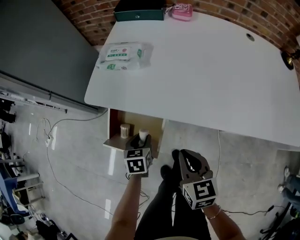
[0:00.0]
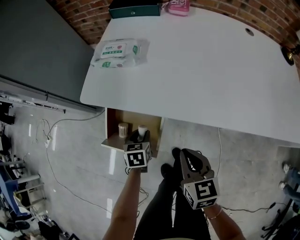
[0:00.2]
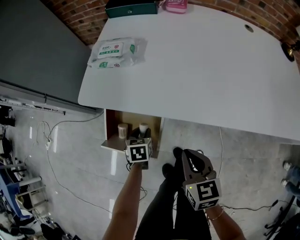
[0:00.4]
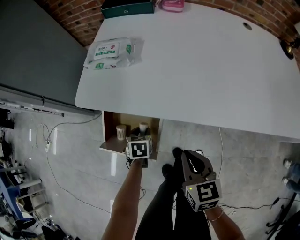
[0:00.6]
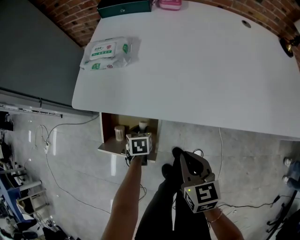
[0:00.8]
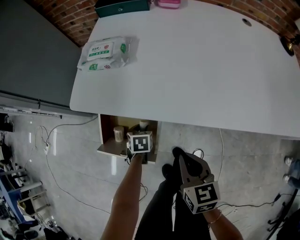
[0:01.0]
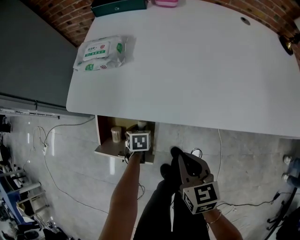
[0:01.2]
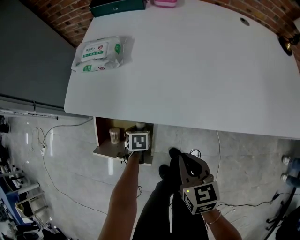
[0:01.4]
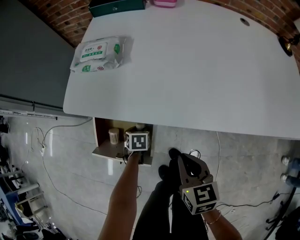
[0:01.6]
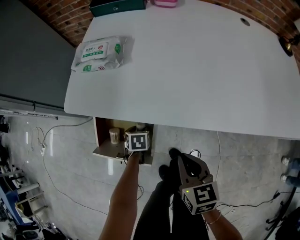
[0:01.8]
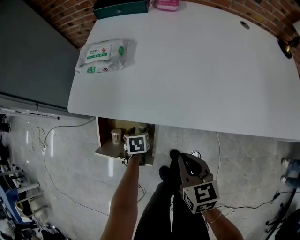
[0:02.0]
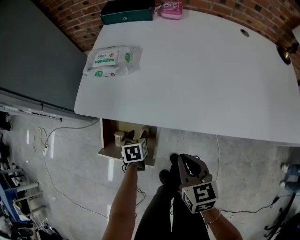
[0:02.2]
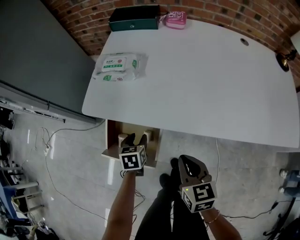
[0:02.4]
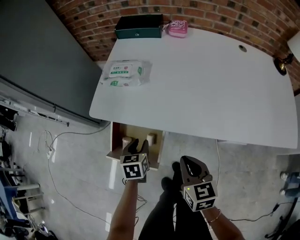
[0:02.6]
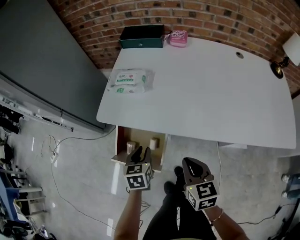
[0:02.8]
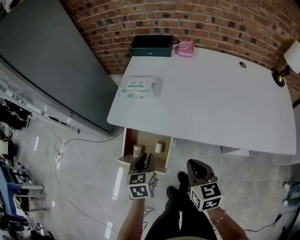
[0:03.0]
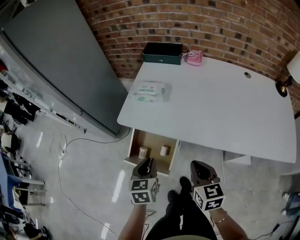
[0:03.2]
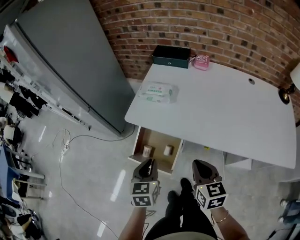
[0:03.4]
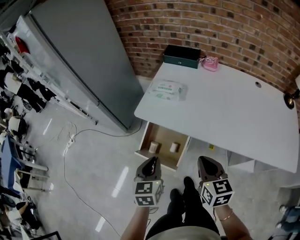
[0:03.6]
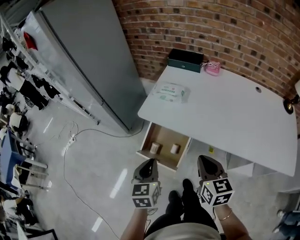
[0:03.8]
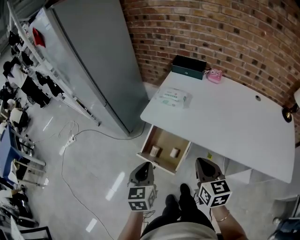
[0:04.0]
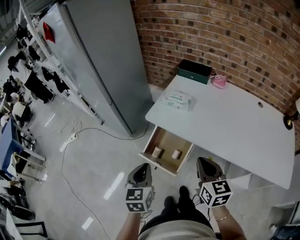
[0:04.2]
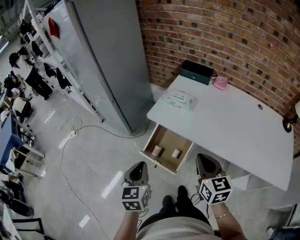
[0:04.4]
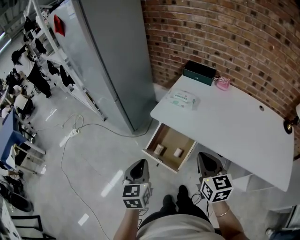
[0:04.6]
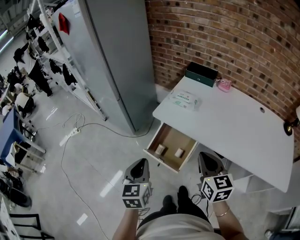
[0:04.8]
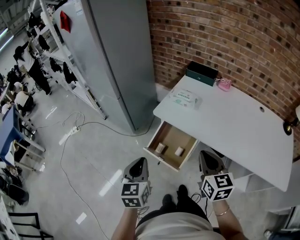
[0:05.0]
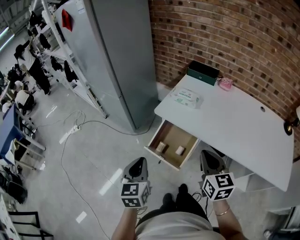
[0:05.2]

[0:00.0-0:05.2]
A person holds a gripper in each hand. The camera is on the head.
0:00.0 to 0:01.8: The right gripper moves downward, some 5 cm. Meanwhile the left gripper travels downward by roughly 15 cm.
0:01.8 to 0:03.4: The left gripper heads upward, covering roughly 40 cm, points its fingers some 40 degrees further upward, and closes. The right gripper shifts roughly 20 cm upward.
0:03.4 to 0:05.2: The left gripper goes some 20 cm to the left, upward and backward; the right gripper shifts approximately 15 cm upward and to the left.

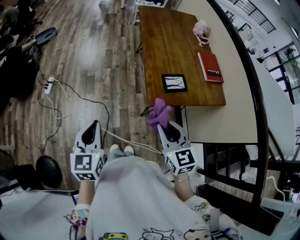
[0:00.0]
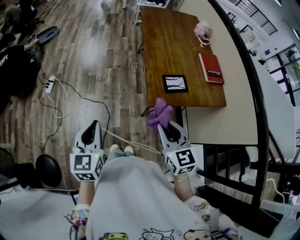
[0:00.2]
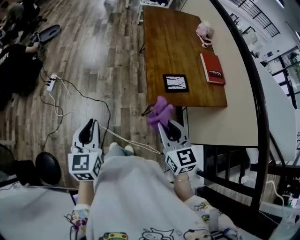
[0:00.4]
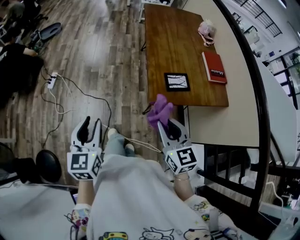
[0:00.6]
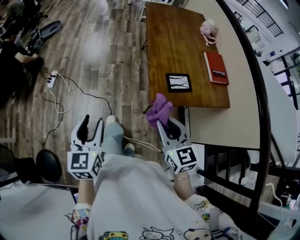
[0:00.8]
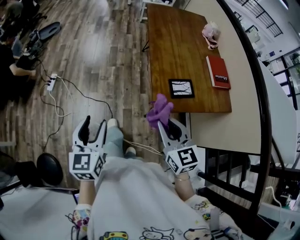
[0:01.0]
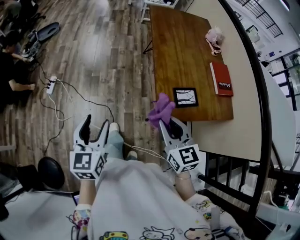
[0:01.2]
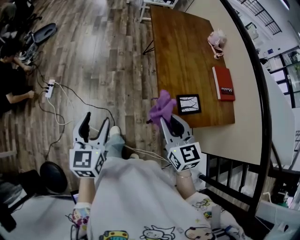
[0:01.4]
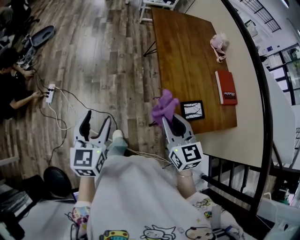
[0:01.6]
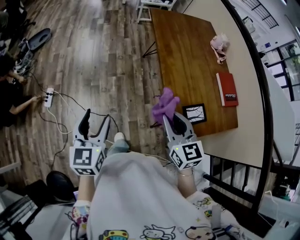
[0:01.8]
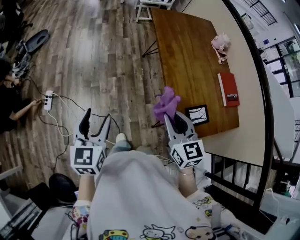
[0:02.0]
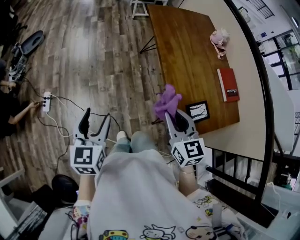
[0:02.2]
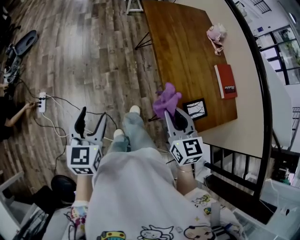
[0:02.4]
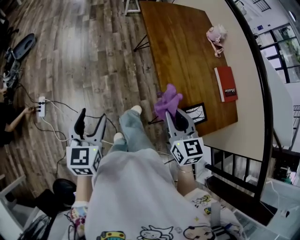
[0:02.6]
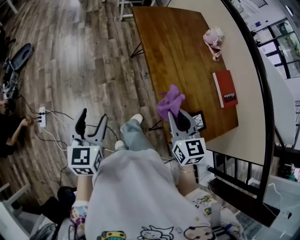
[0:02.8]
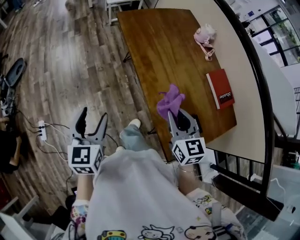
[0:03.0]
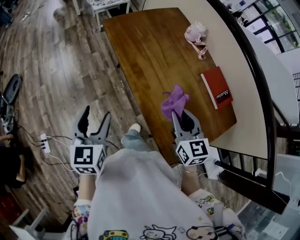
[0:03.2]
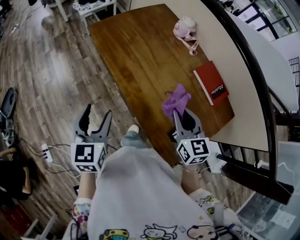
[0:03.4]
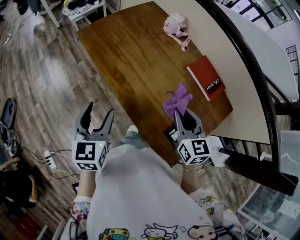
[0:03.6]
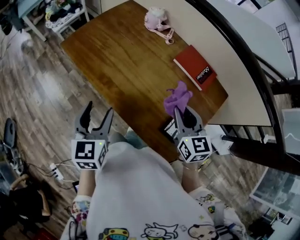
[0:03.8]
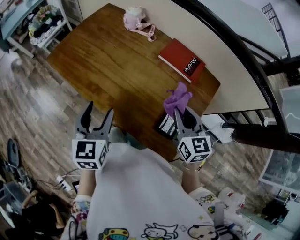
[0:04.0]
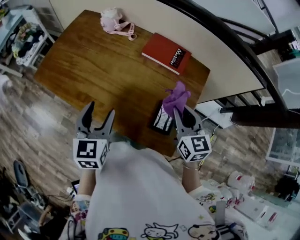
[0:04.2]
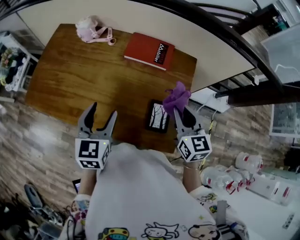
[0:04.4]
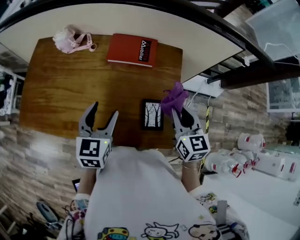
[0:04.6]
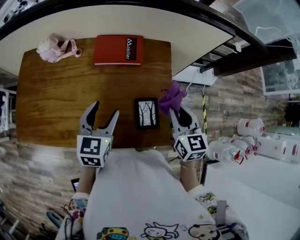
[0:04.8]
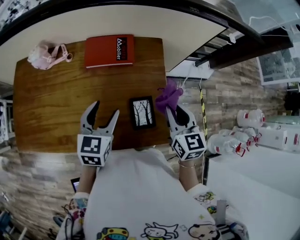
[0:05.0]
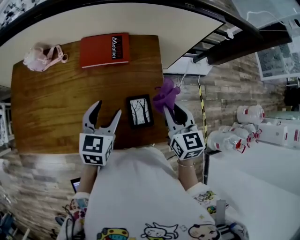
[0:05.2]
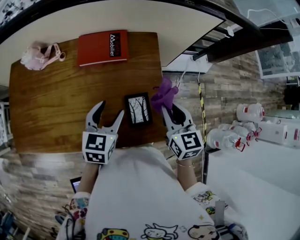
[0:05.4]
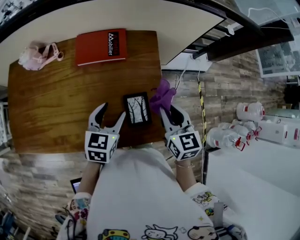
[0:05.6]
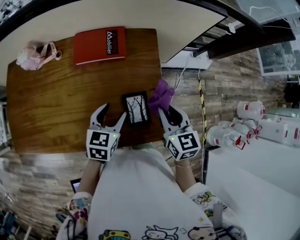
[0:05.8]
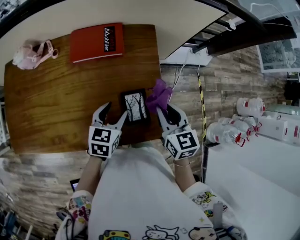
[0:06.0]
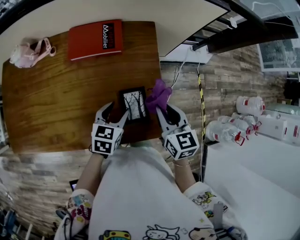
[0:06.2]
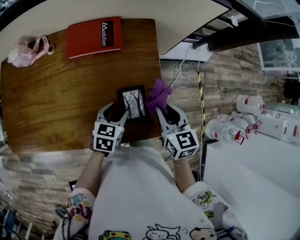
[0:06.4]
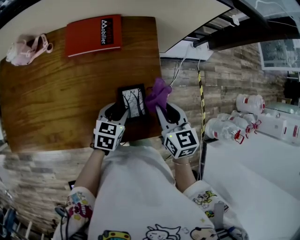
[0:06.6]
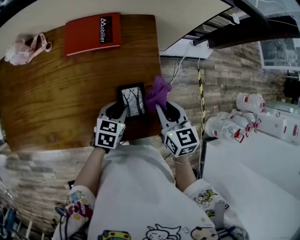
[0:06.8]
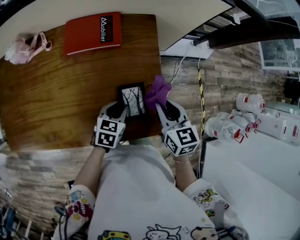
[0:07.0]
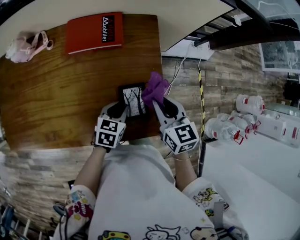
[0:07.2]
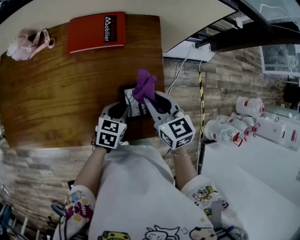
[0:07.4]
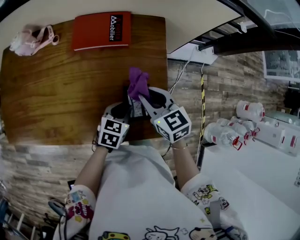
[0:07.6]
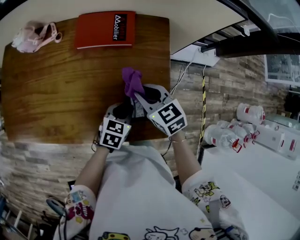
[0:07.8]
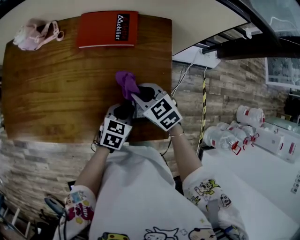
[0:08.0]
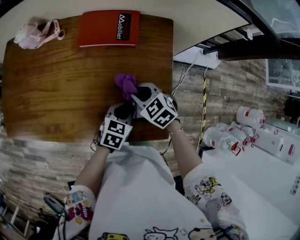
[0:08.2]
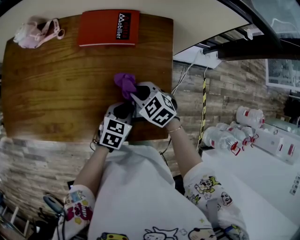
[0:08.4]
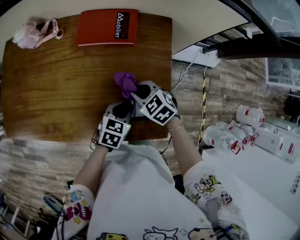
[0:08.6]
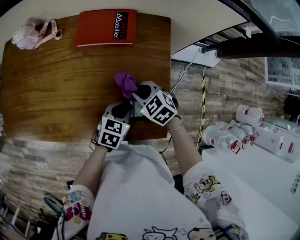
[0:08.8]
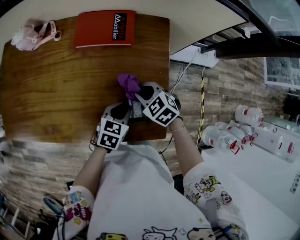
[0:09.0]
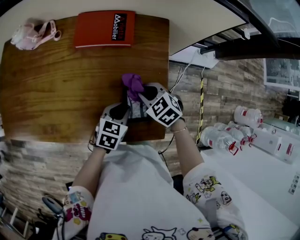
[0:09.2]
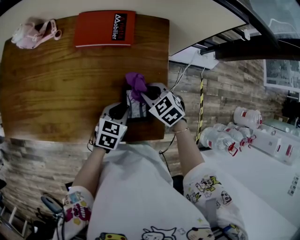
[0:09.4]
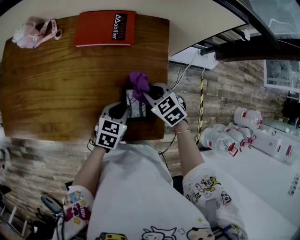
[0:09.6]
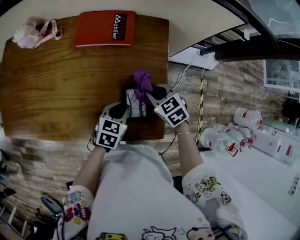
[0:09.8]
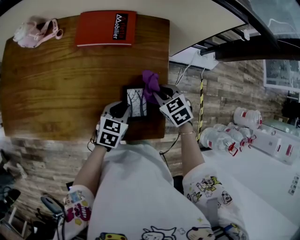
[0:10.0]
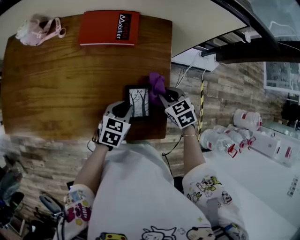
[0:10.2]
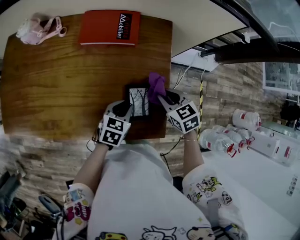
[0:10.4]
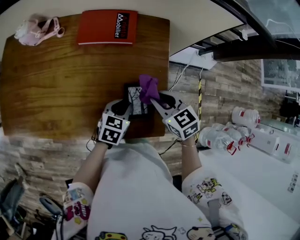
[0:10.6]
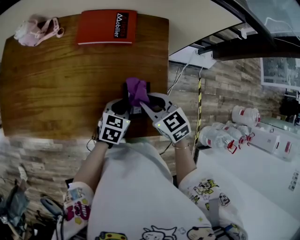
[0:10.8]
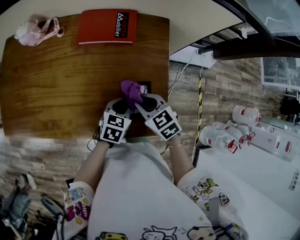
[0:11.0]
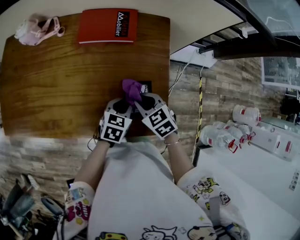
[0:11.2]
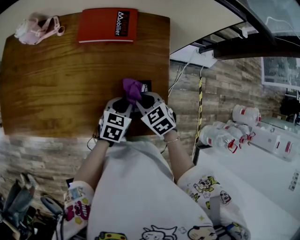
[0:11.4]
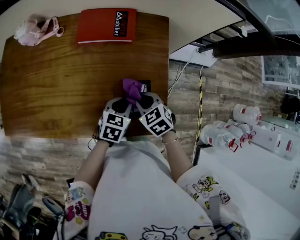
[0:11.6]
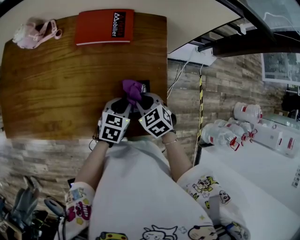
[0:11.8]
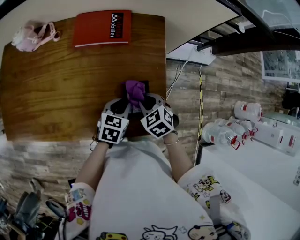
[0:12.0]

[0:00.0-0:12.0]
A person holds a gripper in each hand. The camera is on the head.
0:00.0 to 0:01.6: The grippers both shift forward by about 25 cm. The left gripper opens up.
0:01.6 to 0:03.0: The right gripper goes roughly 20 cm forward and to the right, while the left gripper is displaced forward by approximately 25 cm.
0:03.0 to 0:04.4: The right gripper moves approximately 25 cm, and changes its angle by about 50 degrees, while the left gripper ends up some 35 cm from where it was, and changes its angle by some 60 degrees.
0:04.4 to 0:06.0: The left gripper changes place by roughly 20 cm, and changes its angle by roughly 40 degrees. The right gripper ends up some 10 cm from where it was, and changes its angle by about 20 degrees.
0:06.0 to 0:07.6: The left gripper moves downward, some 5 cm, and closes up, while the right gripper heads to the left, covering approximately 10 cm, and changes its angle by some 20 degrees.
0:07.6 to 0:09.0: The right gripper is displaced downward by some 10 cm, and swivels about 30 degrees.
0:09.0 to 0:10.4: The right gripper shifts about 10 cm to the right, and turns by roughly 20 degrees.
0:10.4 to 0:12.0: The right gripper goes roughly 5 cm to the left.

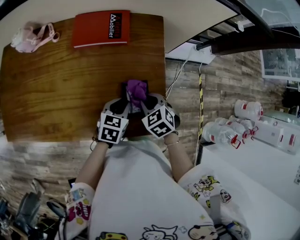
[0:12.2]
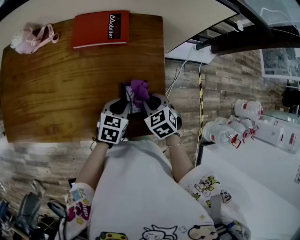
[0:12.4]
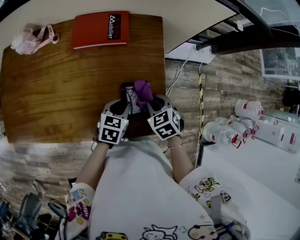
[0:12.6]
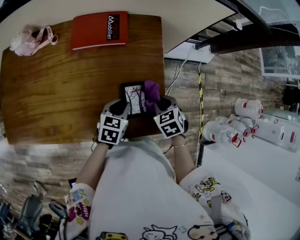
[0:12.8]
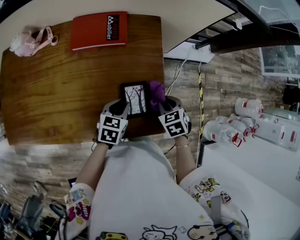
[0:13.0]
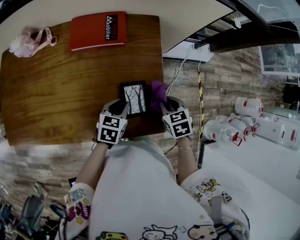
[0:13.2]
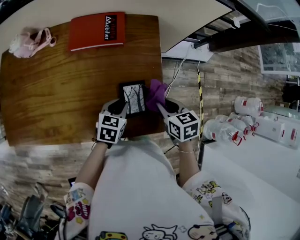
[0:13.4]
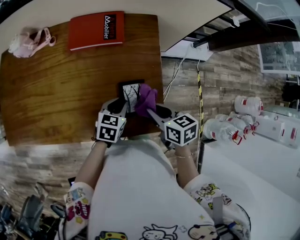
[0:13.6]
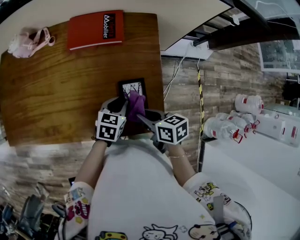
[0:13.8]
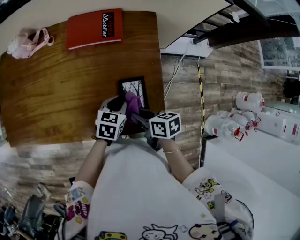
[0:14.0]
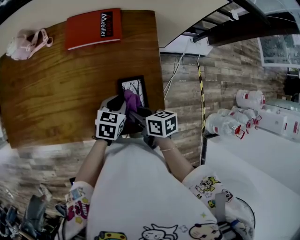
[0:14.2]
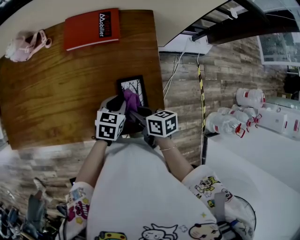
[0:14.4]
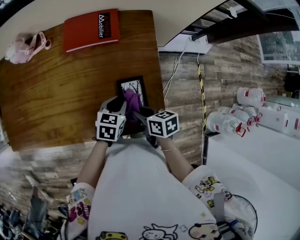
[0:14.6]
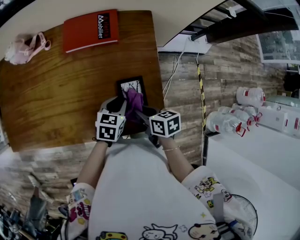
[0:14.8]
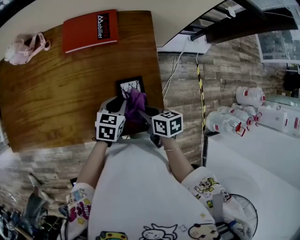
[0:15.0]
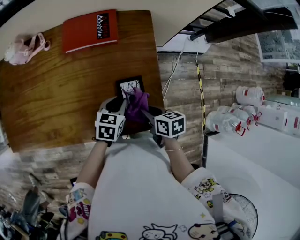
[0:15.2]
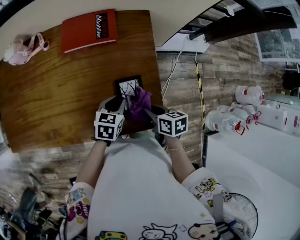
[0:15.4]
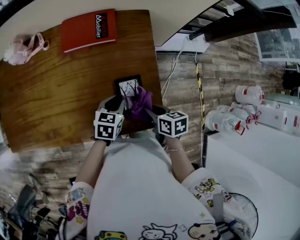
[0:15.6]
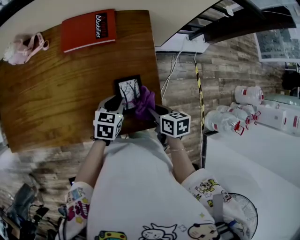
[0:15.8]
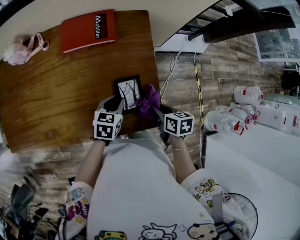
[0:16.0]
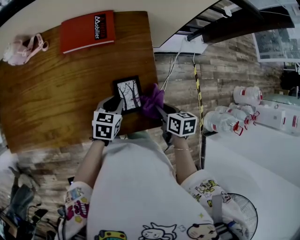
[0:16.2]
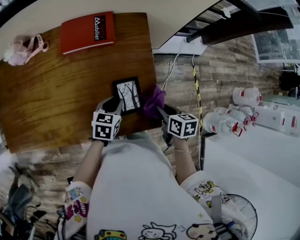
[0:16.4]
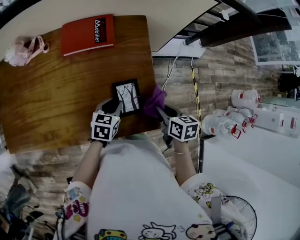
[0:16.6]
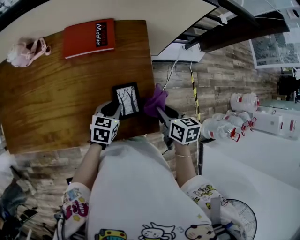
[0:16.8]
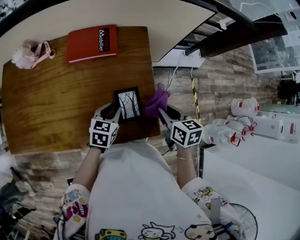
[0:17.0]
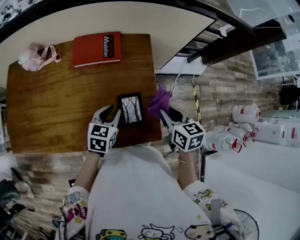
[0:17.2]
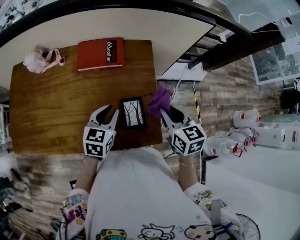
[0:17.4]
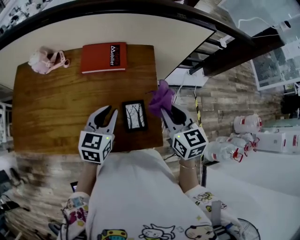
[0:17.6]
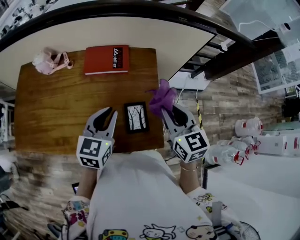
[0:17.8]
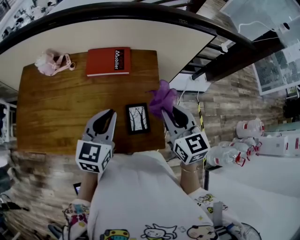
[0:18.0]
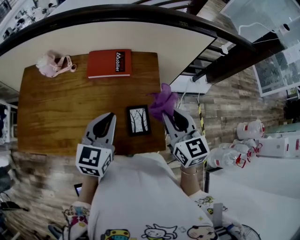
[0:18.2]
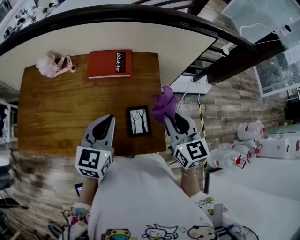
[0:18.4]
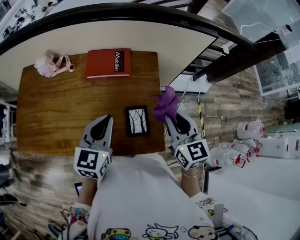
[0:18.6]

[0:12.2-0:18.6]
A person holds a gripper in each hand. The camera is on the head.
0:12.2 to 0:13.8: The right gripper moves backward, roughly 5 cm, goes to the right and returns, some 10 cm each way, and rolls clockwise, seen from behind, by approximately 50 degrees.
0:13.8 to 0:15.4: The right gripper changes place by approximately 5 cm.
0:15.4 to 0:17.0: The right gripper heads upward and to the right, covering about 10 cm.
0:17.0 to 0:18.6: Both grippers travel together upward, about 15 cm. The right gripper turns by about 30 degrees; the left gripper changes its angle by roughly 30 degrees.
